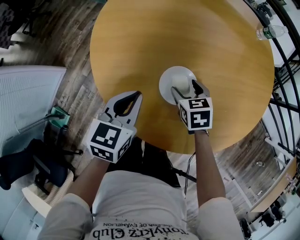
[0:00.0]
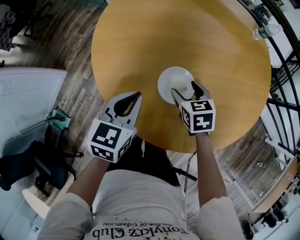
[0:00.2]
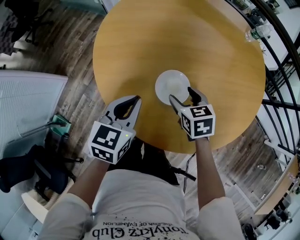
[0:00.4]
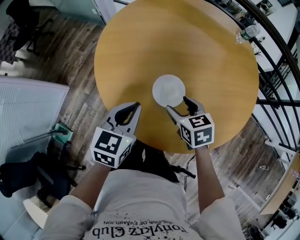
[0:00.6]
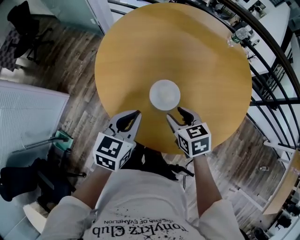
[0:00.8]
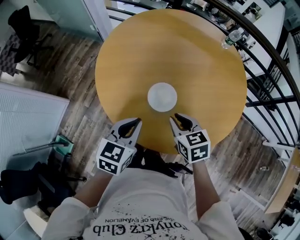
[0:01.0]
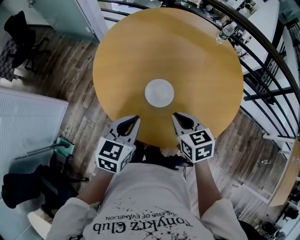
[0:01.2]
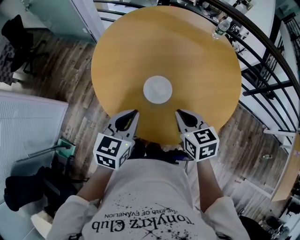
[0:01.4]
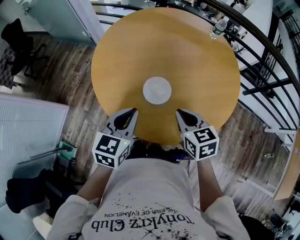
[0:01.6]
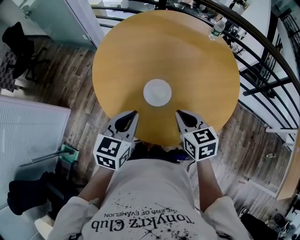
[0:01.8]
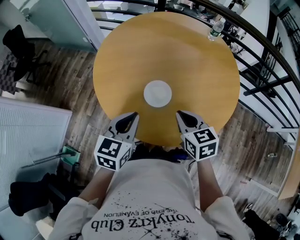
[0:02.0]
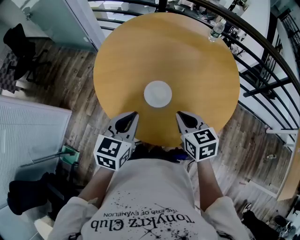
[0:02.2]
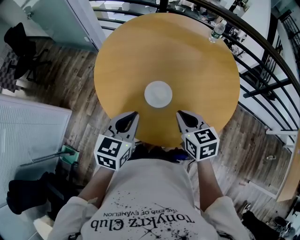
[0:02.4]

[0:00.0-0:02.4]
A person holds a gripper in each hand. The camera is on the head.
0:00.0 to 0:01.2: The left gripper heads backward and upward, covering approximately 15 cm, while the right gripper goes approximately 25 cm upward and backward, and closes.
0:01.2 to 0:02.4: The grippers stay close to where they were, moving slightly.

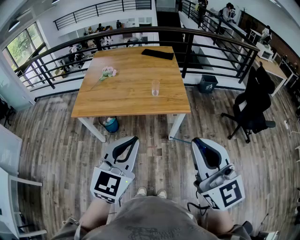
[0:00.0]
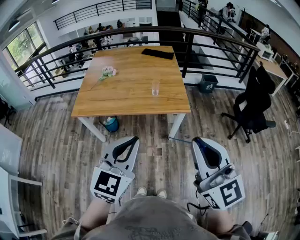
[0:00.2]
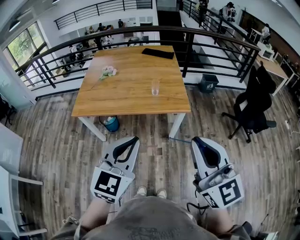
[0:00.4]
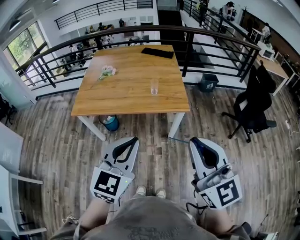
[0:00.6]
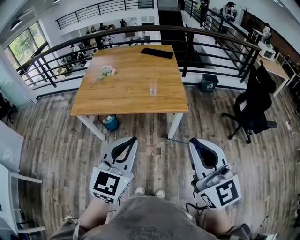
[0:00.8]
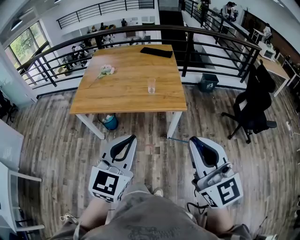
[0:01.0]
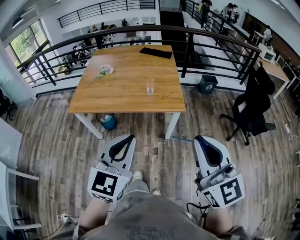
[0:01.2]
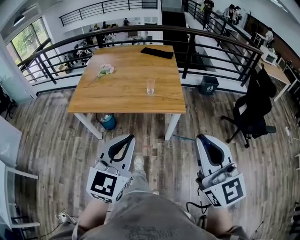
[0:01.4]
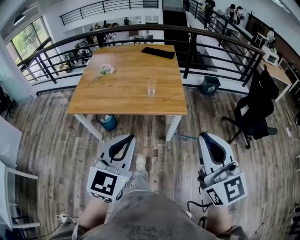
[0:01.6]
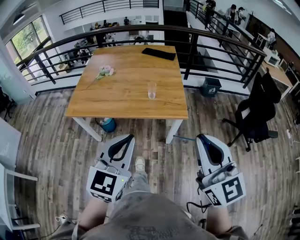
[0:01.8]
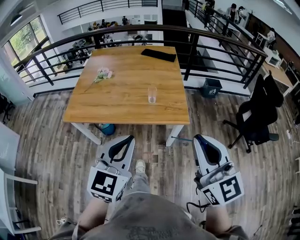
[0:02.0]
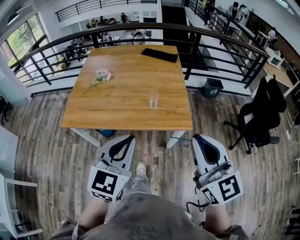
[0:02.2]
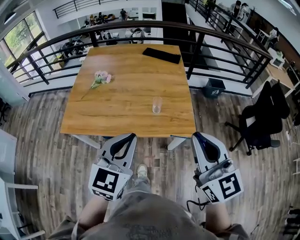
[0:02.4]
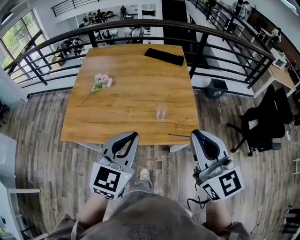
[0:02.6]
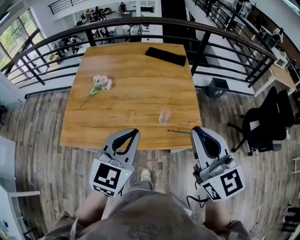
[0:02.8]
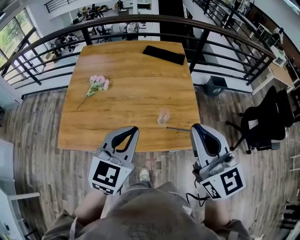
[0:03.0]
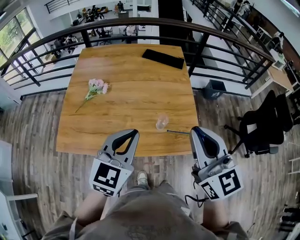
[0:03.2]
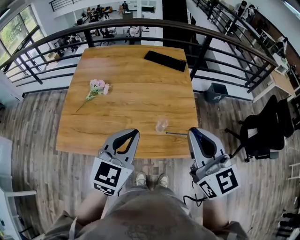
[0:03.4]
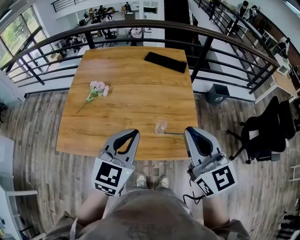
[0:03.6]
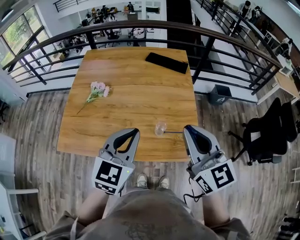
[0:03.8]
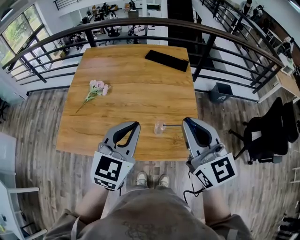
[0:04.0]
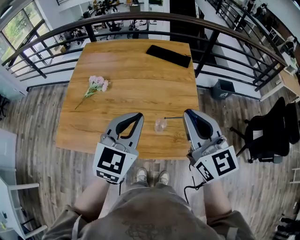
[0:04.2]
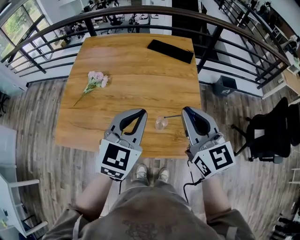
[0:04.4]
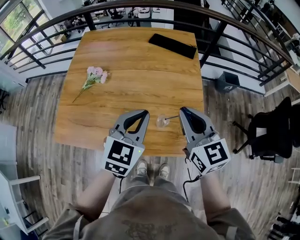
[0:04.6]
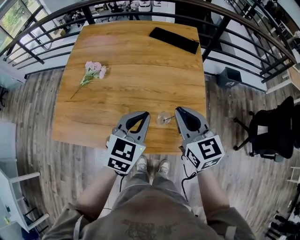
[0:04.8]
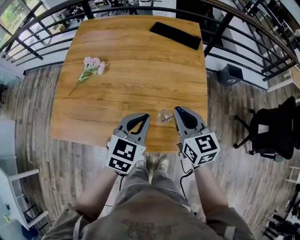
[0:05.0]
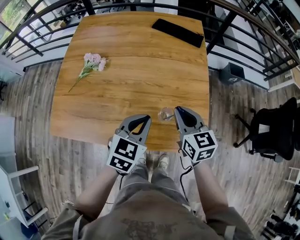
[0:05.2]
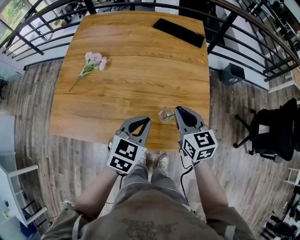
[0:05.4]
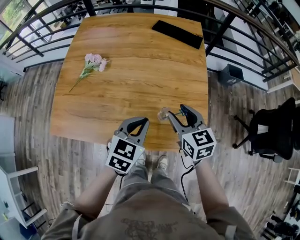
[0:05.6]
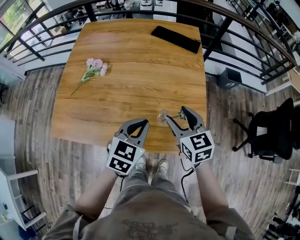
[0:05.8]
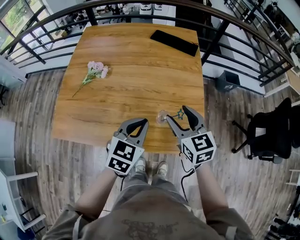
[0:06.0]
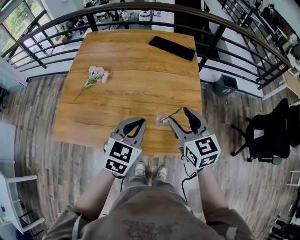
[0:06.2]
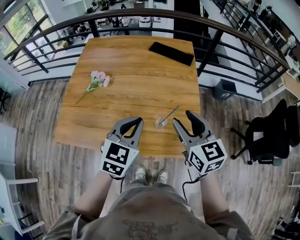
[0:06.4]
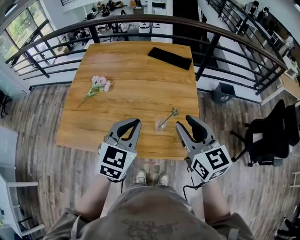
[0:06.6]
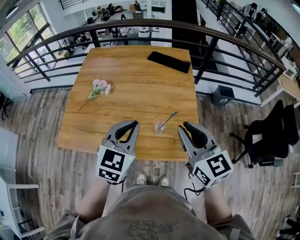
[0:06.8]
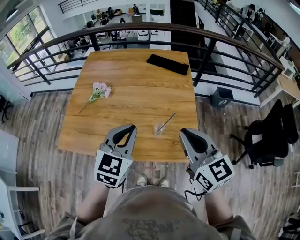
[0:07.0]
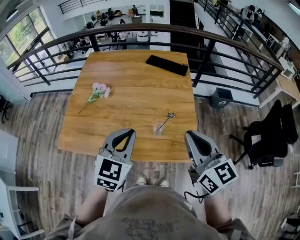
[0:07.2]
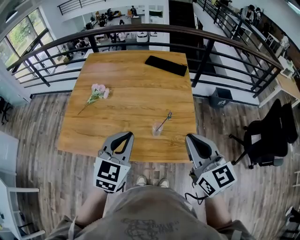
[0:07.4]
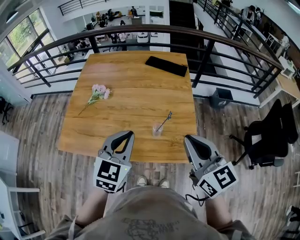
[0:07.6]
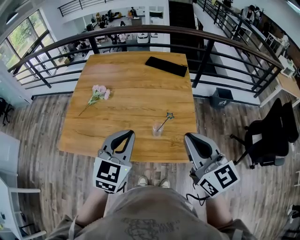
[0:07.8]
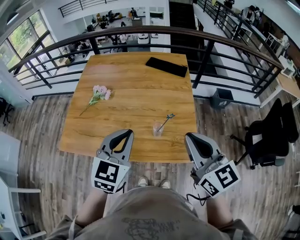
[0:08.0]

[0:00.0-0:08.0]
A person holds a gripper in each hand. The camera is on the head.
0:00.0 to 0:01.6: The left gripper moves approximately 5 cm; the right gripper travels to the right by about 10 cm.
0:01.6 to 0:03.2: The grippers both shift forward by some 35 cm.
0:03.2 to 0:04.8: The left gripper shifts roughly 15 cm downward, forward and to the right. The right gripper moves downward and forward, about 20 cm.
0:04.8 to 0:06.4: The left gripper shifts by approximately 5 cm. Meanwhile the right gripper travels downward and back again, roughly 10 cm each way, and opens its fingers.
0:06.4 to 0:08.0: The left gripper travels upward and backward by about 10 cm; the right gripper heads backward and upward, covering roughly 15 cm, and closes its fingers.

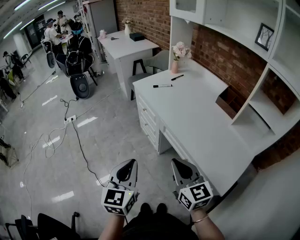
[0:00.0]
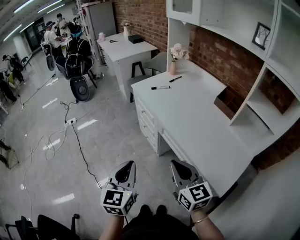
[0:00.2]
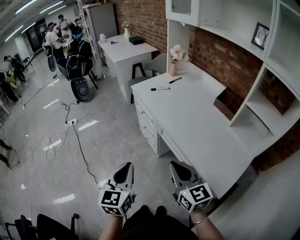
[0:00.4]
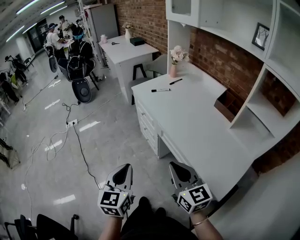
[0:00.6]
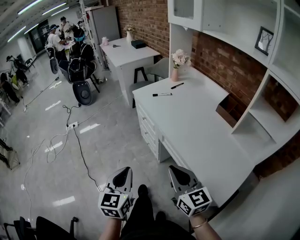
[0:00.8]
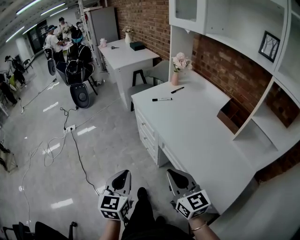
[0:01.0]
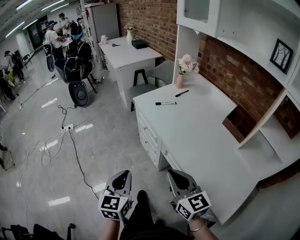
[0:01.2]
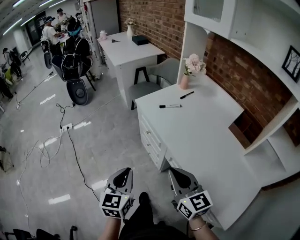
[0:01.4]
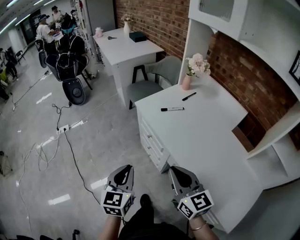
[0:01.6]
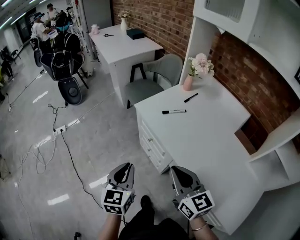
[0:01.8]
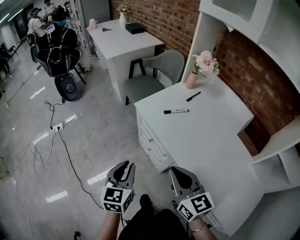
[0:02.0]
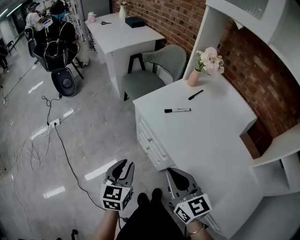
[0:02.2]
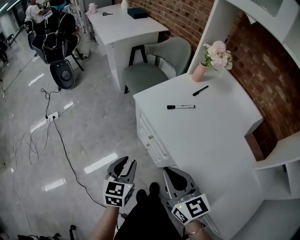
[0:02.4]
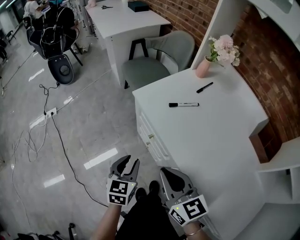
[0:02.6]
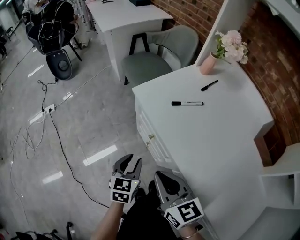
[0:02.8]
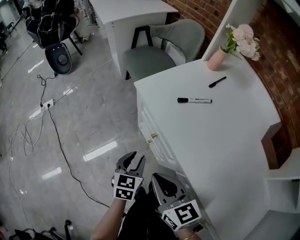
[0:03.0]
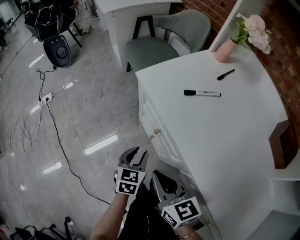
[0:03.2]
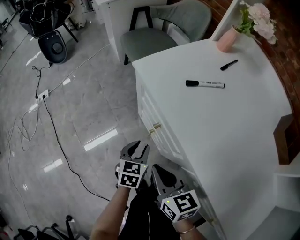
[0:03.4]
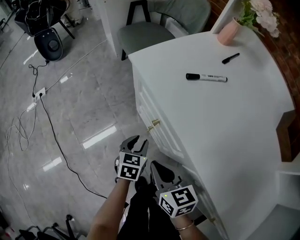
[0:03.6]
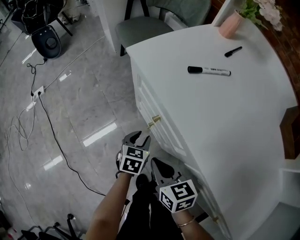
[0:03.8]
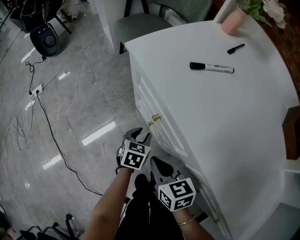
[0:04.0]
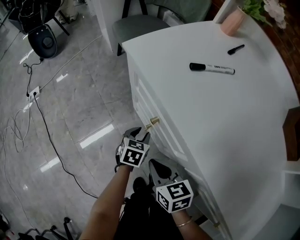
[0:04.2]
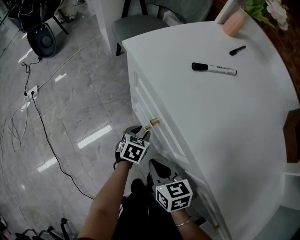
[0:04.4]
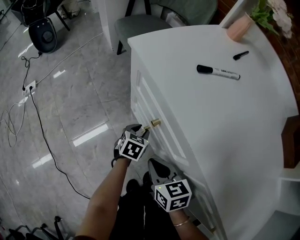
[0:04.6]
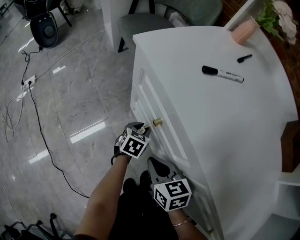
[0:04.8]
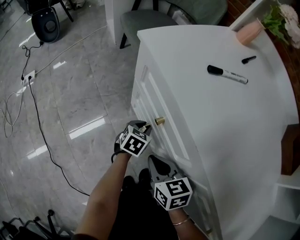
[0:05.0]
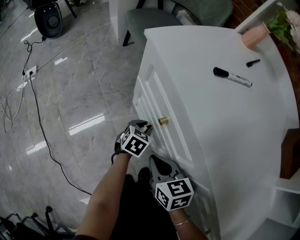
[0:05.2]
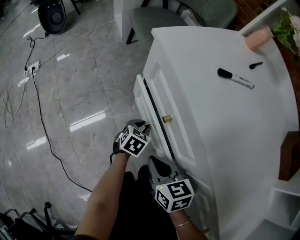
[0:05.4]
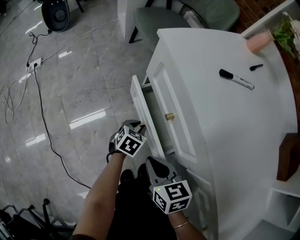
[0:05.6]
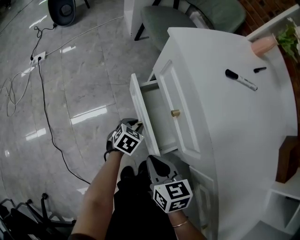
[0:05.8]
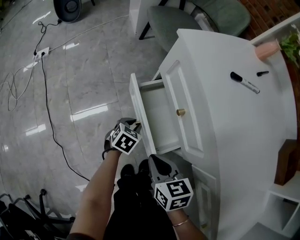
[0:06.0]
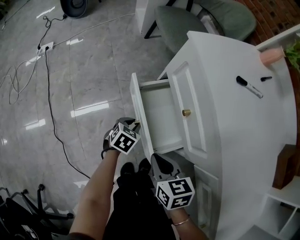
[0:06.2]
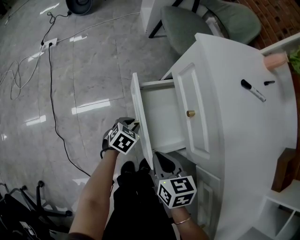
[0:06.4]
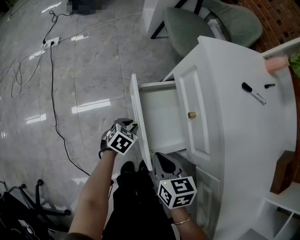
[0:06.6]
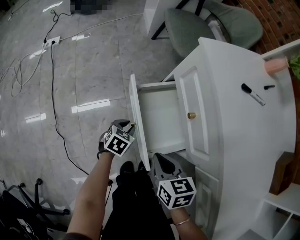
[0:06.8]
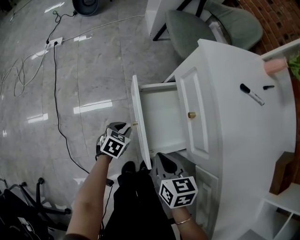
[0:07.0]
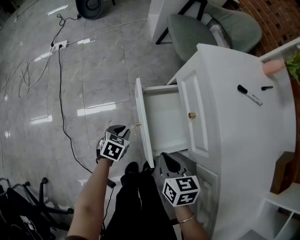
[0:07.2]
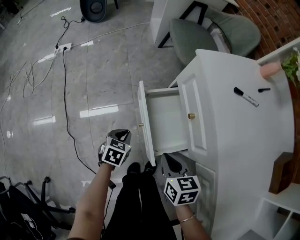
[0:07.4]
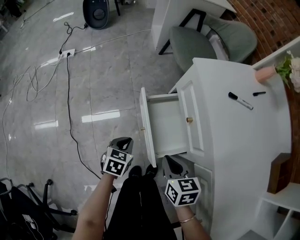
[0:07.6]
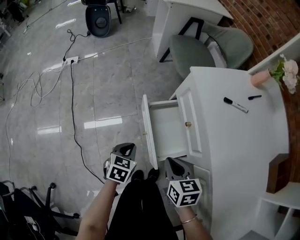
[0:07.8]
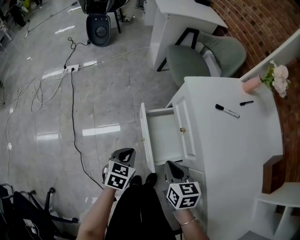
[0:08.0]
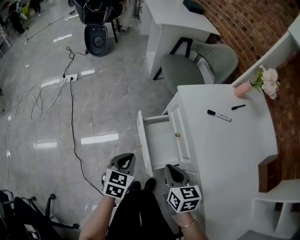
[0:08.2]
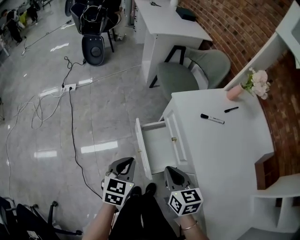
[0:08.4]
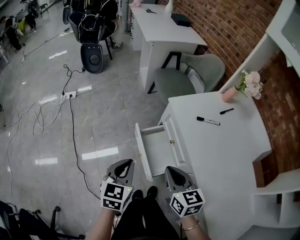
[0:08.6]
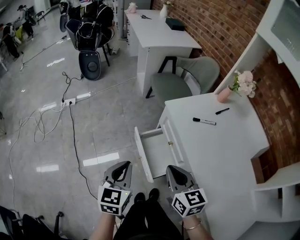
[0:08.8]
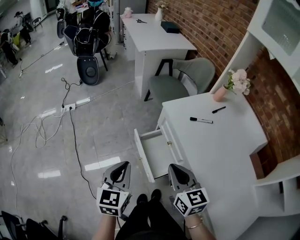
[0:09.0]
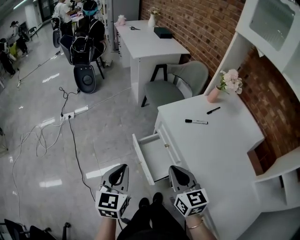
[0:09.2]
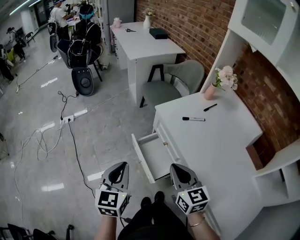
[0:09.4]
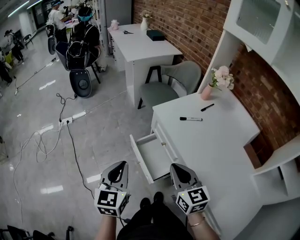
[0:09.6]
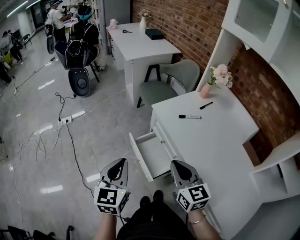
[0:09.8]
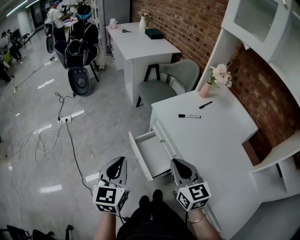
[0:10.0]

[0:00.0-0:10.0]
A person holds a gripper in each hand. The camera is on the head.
0:00.0 to 0:01.4: The two grippers go about 20 cm forward.
0:01.4 to 0:02.8: The left gripper travels forward and downward by approximately 30 cm, and opens its fingers. Meanwhile the right gripper travels forward, downward and to the left by about 25 cm.
0:02.8 to 0:04.2: The two grippers go about 25 cm downward. The right gripper turns by approximately 20 degrees.
0:04.2 to 0:05.8: The left gripper is displaced to the left by roughly 5 cm.
0:05.8 to 0:07.2: The left gripper goes approximately 15 cm to the left and backward.
0:07.2 to 0:08.6: The right gripper heads upward, covering approximately 25 cm, and turns by approximately 20 degrees. The left gripper is displaced upward by some 35 cm, and rotates some 30 degrees.
0:08.6 to 0:10.0: The two grippers go roughly 10 cm upward.

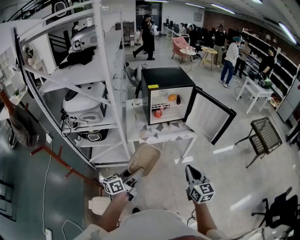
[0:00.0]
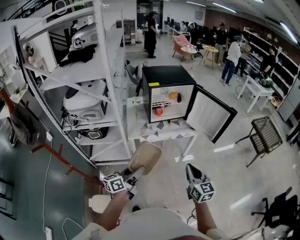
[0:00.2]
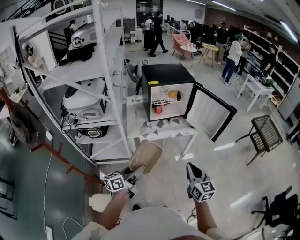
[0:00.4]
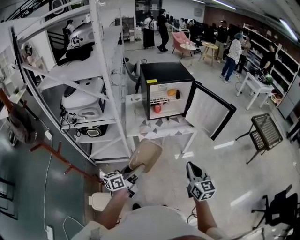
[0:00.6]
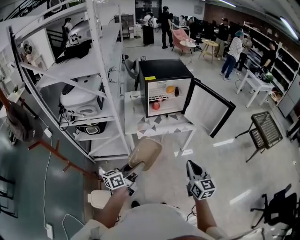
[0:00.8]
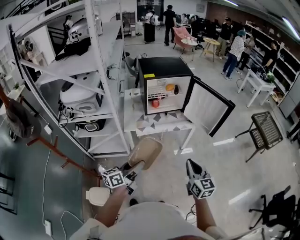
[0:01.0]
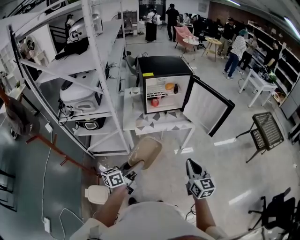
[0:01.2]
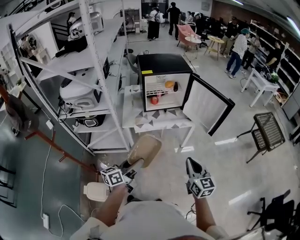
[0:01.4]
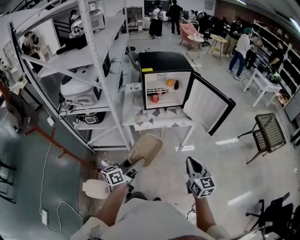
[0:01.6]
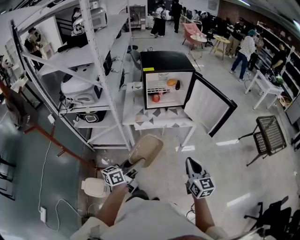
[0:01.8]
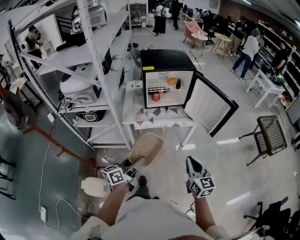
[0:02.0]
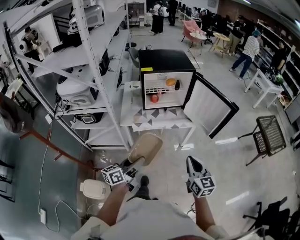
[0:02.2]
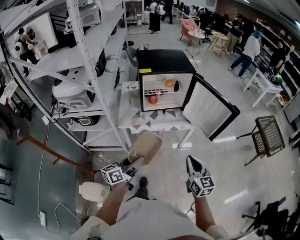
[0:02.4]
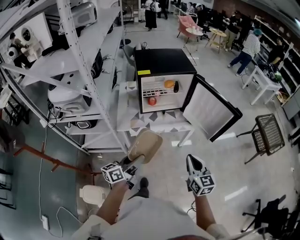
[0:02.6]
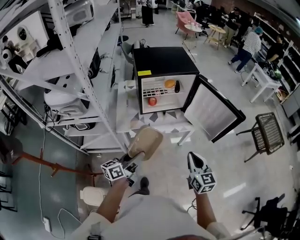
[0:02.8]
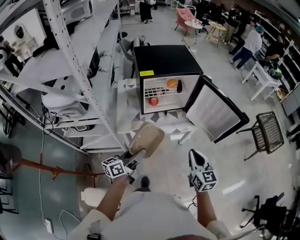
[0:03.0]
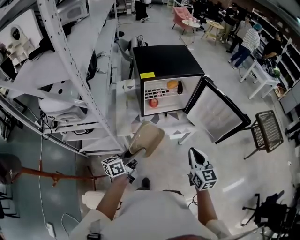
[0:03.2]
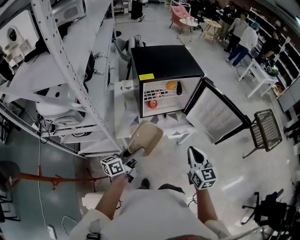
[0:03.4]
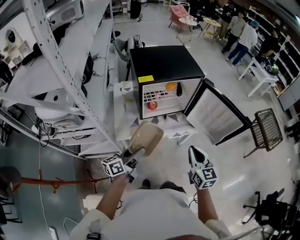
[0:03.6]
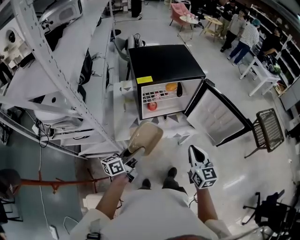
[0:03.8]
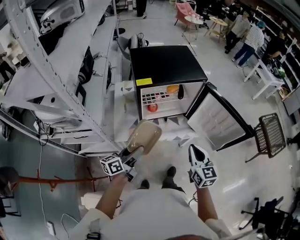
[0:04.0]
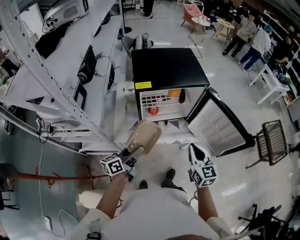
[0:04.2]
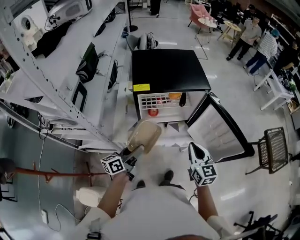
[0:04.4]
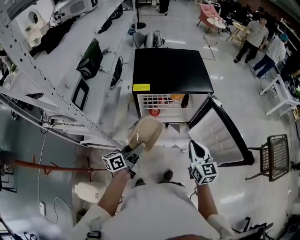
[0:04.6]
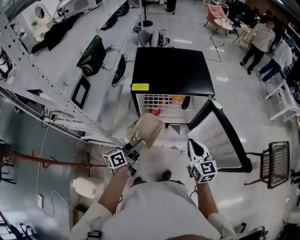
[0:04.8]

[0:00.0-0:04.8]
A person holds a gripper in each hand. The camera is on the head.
0:00.0 to 0:01.6: Both grippers move to the right, some 10 cm.
0:01.6 to 0:03.2: The two grippers go some 25 cm forward.
0:03.2 to 0:04.8: Both grippers move forward, roughly 20 cm.
